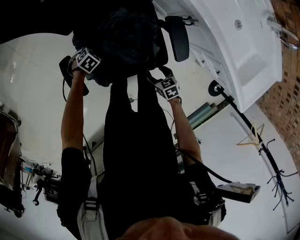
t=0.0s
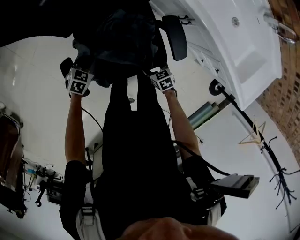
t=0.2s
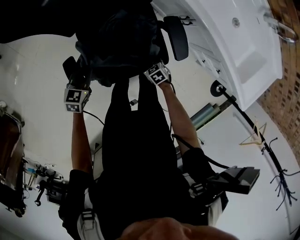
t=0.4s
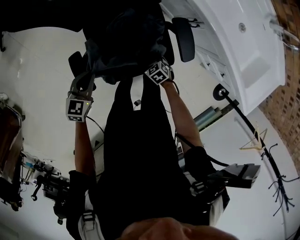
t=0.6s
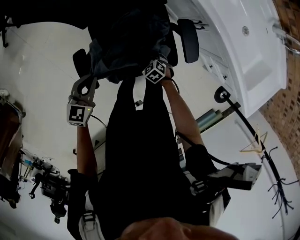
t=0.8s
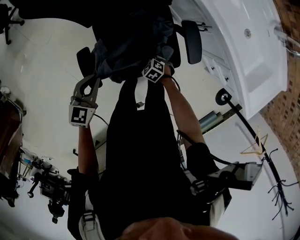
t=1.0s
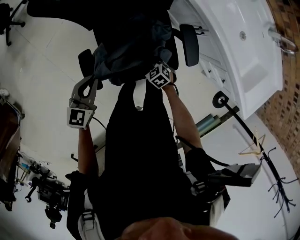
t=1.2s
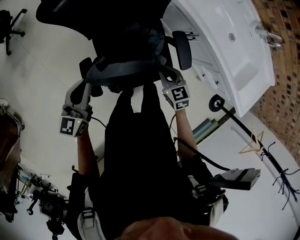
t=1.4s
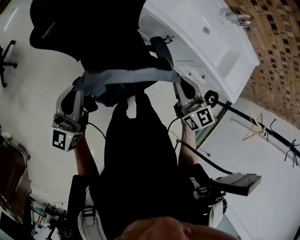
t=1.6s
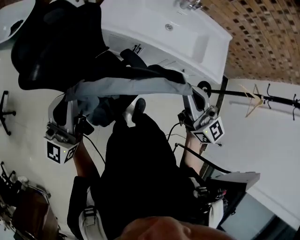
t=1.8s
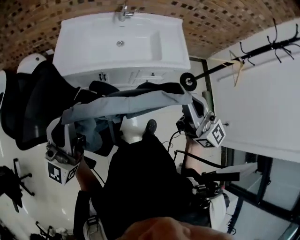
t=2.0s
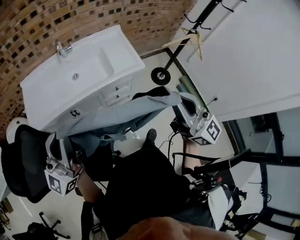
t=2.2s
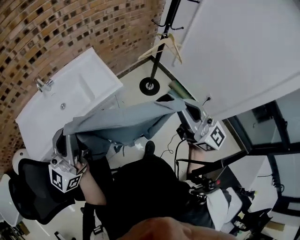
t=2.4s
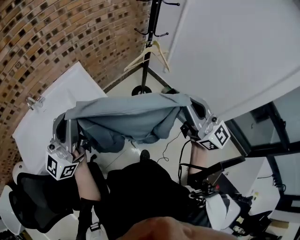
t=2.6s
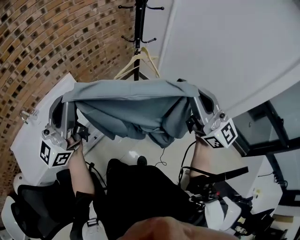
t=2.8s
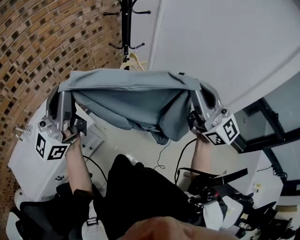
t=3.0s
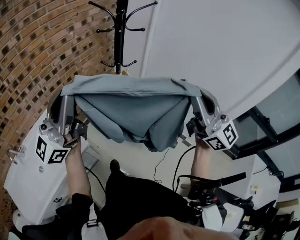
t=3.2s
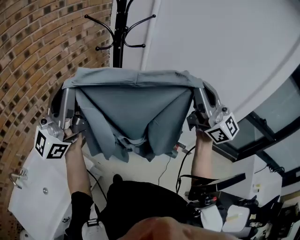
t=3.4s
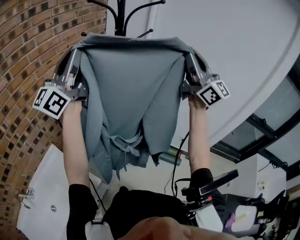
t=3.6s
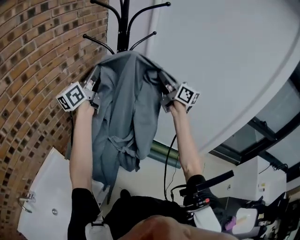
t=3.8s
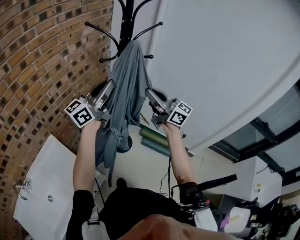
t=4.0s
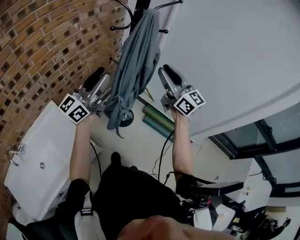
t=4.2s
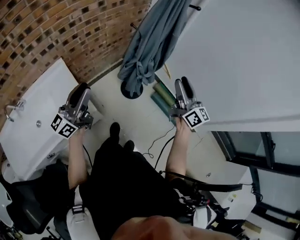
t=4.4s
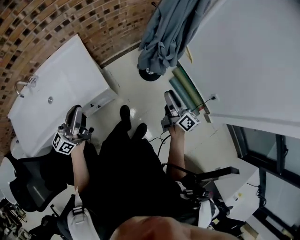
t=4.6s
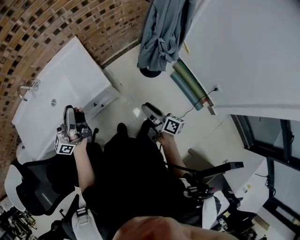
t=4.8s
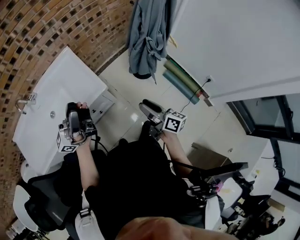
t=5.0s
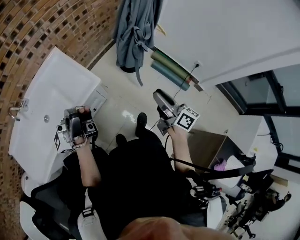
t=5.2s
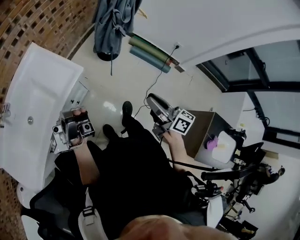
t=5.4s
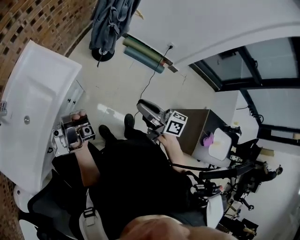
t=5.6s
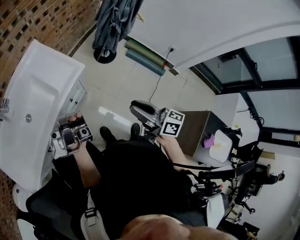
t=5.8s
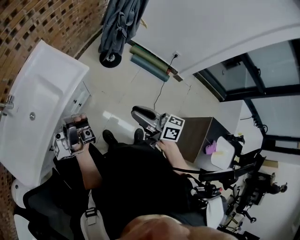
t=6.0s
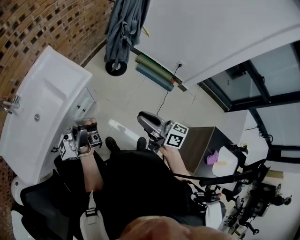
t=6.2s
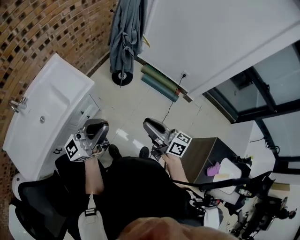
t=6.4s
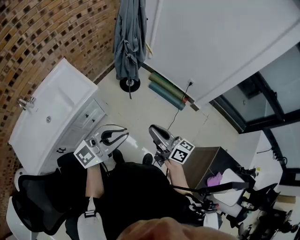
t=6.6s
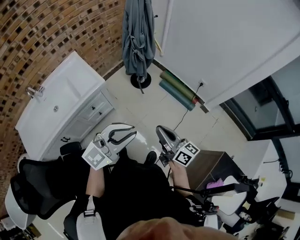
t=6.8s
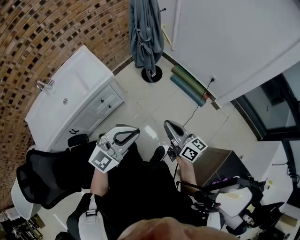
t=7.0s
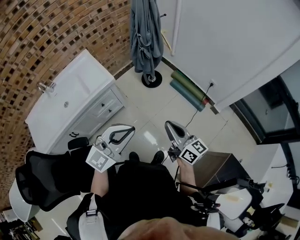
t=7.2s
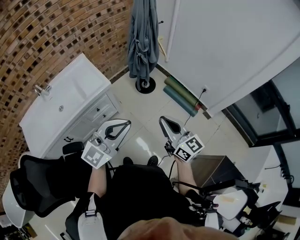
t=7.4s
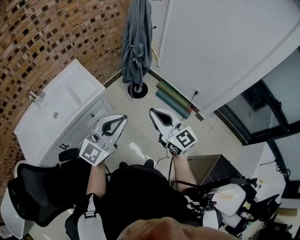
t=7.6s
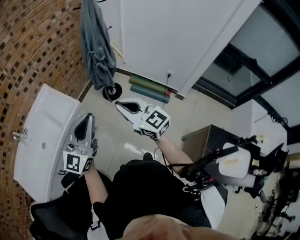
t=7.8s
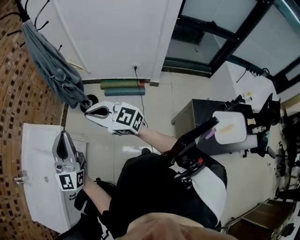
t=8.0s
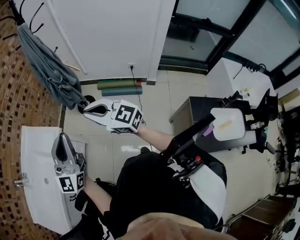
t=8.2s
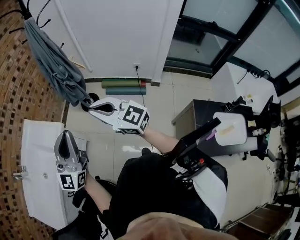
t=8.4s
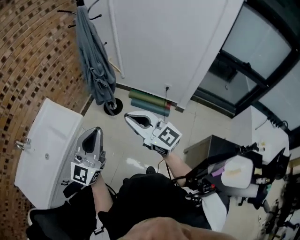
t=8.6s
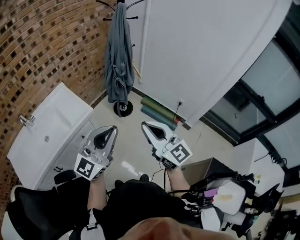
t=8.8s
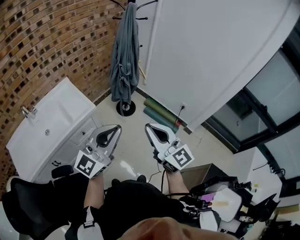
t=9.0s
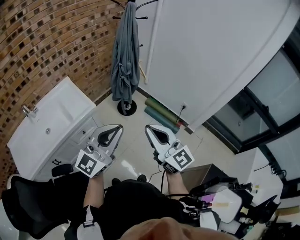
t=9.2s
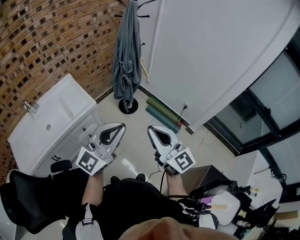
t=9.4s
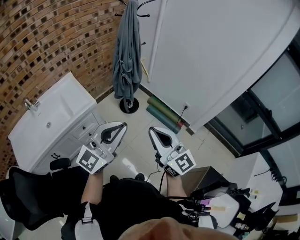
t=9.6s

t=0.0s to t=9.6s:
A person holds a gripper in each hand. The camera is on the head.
t=0.0s to t=1.6s: Both grippers move upward, roughly 50 cm. The left gripper tilts its fingers roughly 80 degrees upward. The right gripper tilts its fingers some 40 degrees upward, and closes up.
t=1.6s to t=3.2s: The two grippers travel together, roughly 90 cm. The right gripper angles its fingers upward, by roughly 40 degrees; the left gripper angles its fingers upward, by some 40 degrees.
t=3.2s to t=4.8s: The left gripper moves up and down over approximately 40 cm, changing direction 2 times, turns by about 30 degrees, and opens, then closes once more. The right gripper shifts roughly 50 cm downward, rotates around the line of its fingers by some 80 degrees, clockwise from behind, and opens up.
t=4.8s to t=6.4s: The left gripper moves some 25 cm, and changes its angle by some 40 degrees. The right gripper shifts by approximately 30 cm, and swivels roughly 30 degrees.
t=6.4s to t=8.0s: The left gripper goes left and right, roughly 20 cm each way, reversing 2 times, and rotates roughly 40 degrees; the right gripper travels upward by roughly 10 cm, reaches some 10 cm to the right, then returns, and rolls counterclockwise, seen from behind, by about 40 degrees.
t=8.0s to t=9.6s: The right gripper moves to the right and backward, about 10 cm. Meanwhile the left gripper moves to the right, approximately 10 cm.

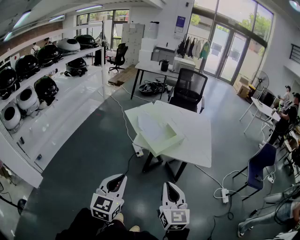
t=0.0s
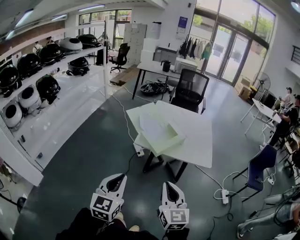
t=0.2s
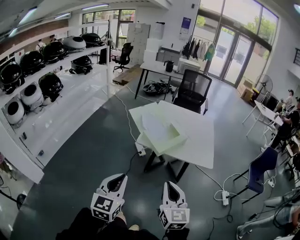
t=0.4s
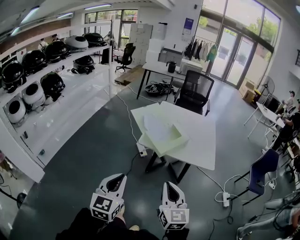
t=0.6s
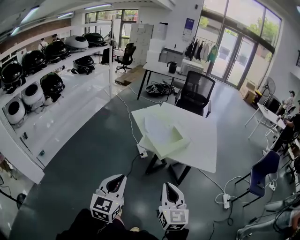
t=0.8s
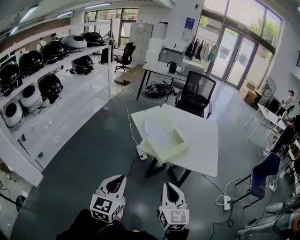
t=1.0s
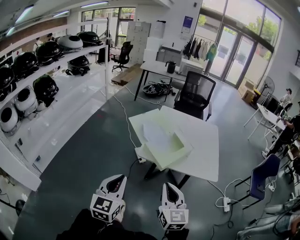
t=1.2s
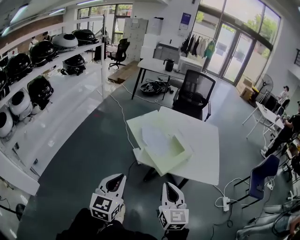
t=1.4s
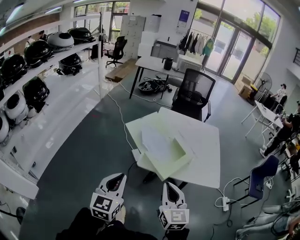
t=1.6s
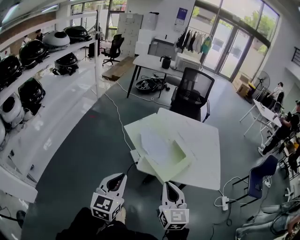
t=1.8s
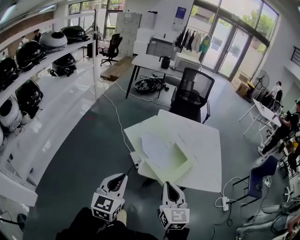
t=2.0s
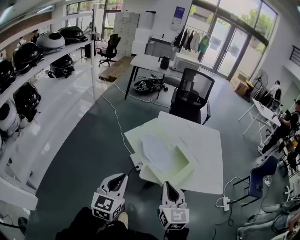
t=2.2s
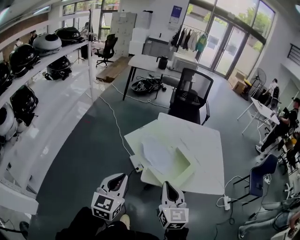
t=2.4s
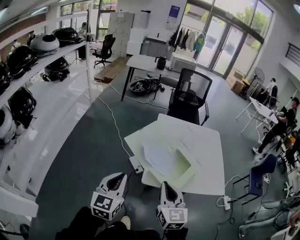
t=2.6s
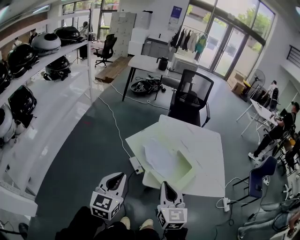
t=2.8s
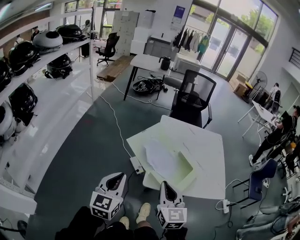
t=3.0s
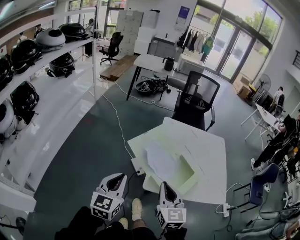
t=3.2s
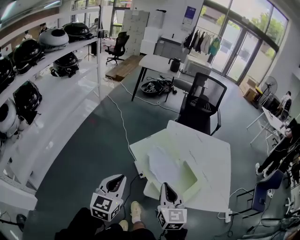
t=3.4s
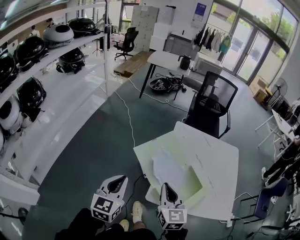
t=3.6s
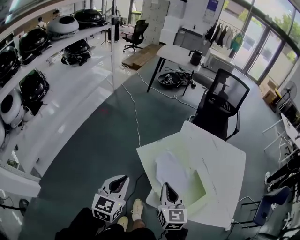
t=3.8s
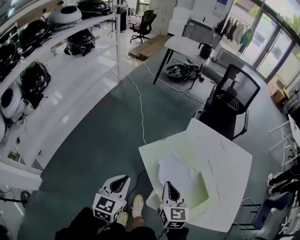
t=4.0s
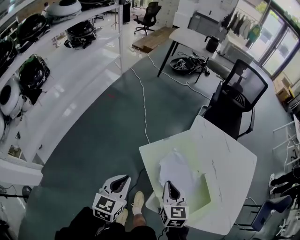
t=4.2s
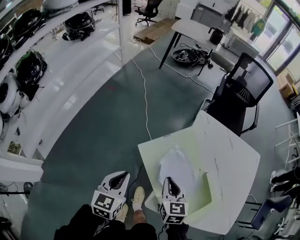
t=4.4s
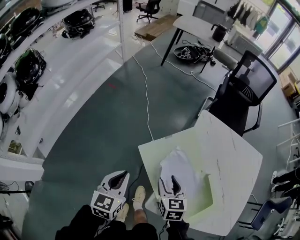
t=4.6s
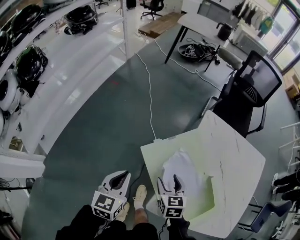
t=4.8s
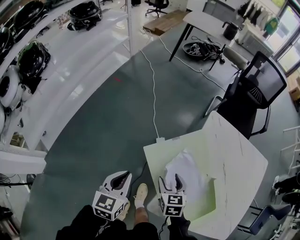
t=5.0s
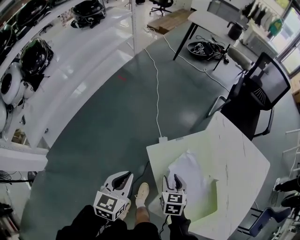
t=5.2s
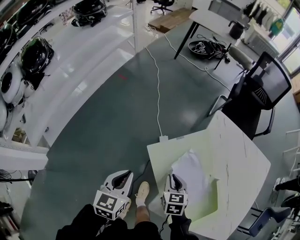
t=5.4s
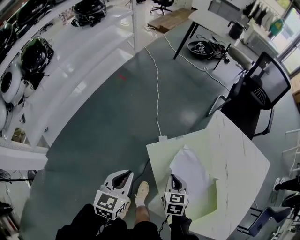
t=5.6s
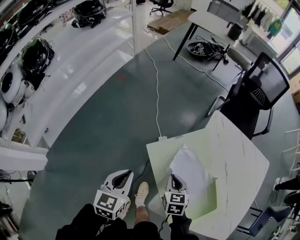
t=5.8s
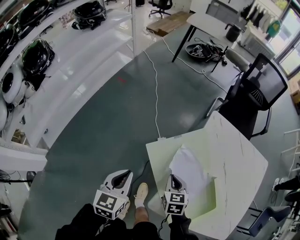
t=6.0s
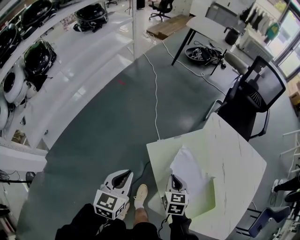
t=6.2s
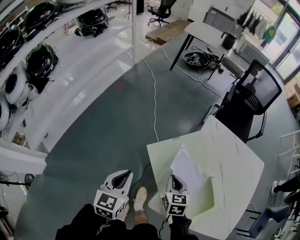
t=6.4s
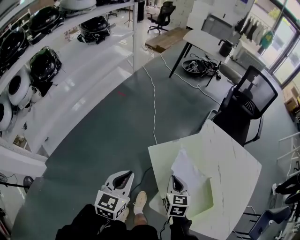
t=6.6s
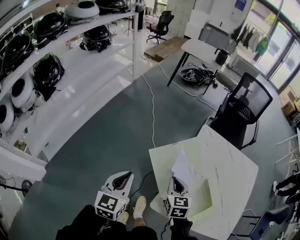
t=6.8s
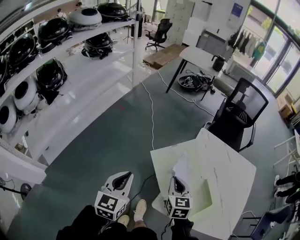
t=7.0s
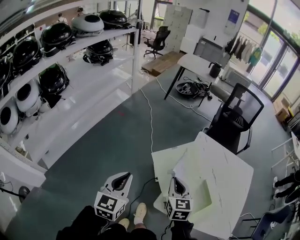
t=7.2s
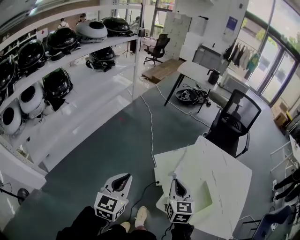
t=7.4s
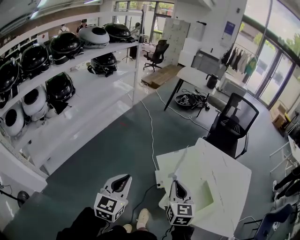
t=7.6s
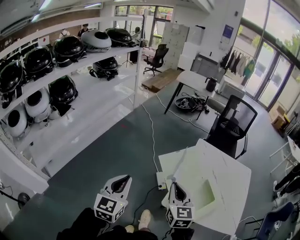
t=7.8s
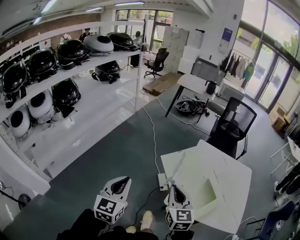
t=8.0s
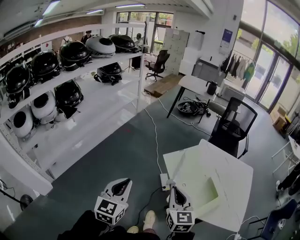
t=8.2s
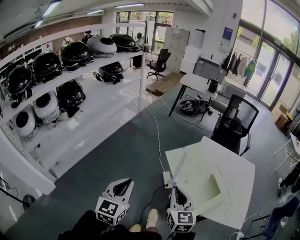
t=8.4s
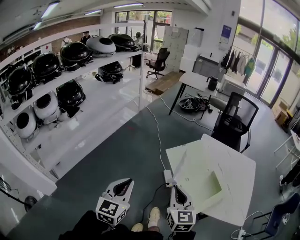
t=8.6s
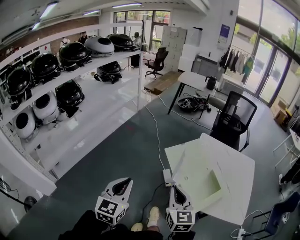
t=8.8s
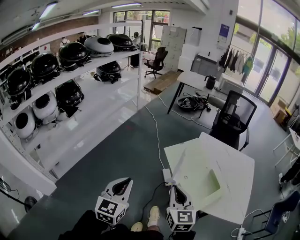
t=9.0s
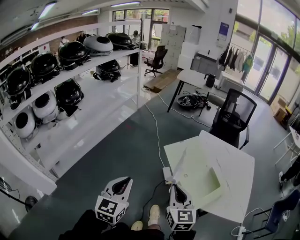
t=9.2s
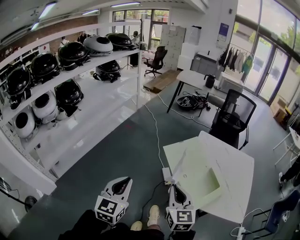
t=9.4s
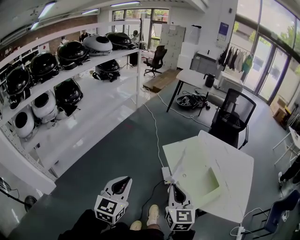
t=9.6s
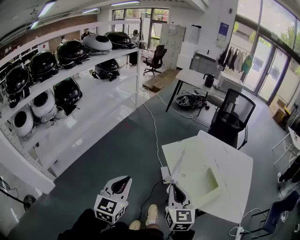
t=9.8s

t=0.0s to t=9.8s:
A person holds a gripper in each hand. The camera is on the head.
t=0.0s to t=1.4s: Both grippers travel together forward and to the left, approximately 25 cm.
t=1.4s to t=2.8s: Both grippers travel together forward and to the left, about 30 cm.
t=2.8s to t=4.2s: The grippers both shift forward and downward by approximately 35 cm. The left gripper changes its angle by some 20 degrees. The right gripper changes its angle by some 20 degrees.
t=4.2s to t=5.6s: The left gripper goes approximately 10 cm downward and forward, while the right gripper is displaced downward and forward by roughly 15 cm, and opens, then closes once more.
t=5.6s to t=7.0s: Both grippers travel together upward and backward, some 20 cm.
t=7.0s to t=8.4s: The left gripper shifts about 25 cm backward. Meanwhile the right gripper is displaced backward and upward by roughly 30 cm.
t=8.4s to t=9.8s: The grippers stay close to where they were, moving slightly.

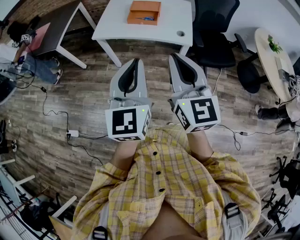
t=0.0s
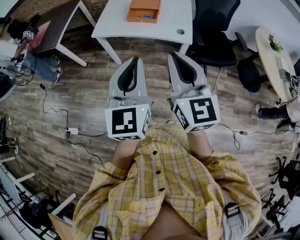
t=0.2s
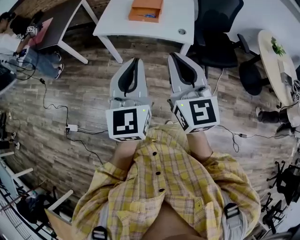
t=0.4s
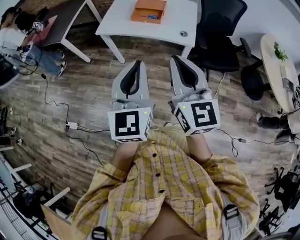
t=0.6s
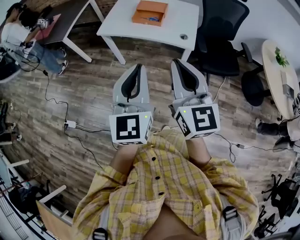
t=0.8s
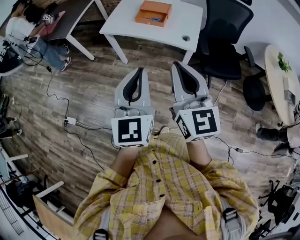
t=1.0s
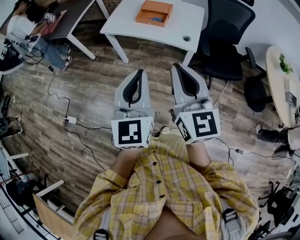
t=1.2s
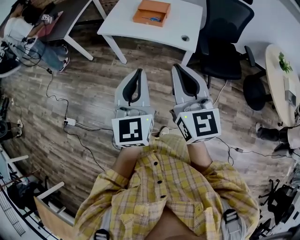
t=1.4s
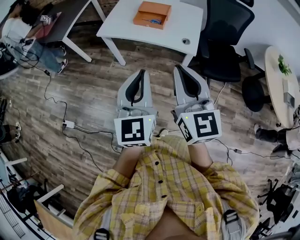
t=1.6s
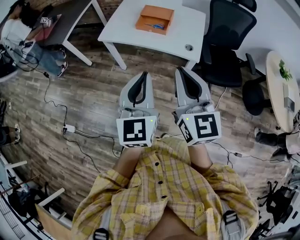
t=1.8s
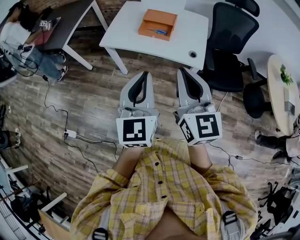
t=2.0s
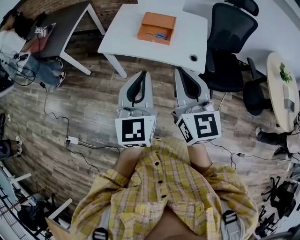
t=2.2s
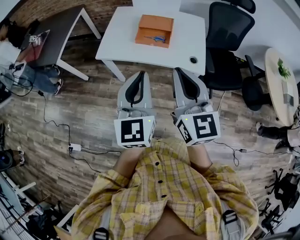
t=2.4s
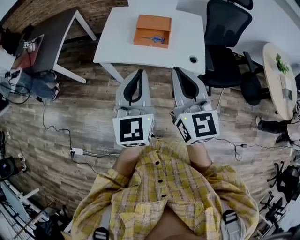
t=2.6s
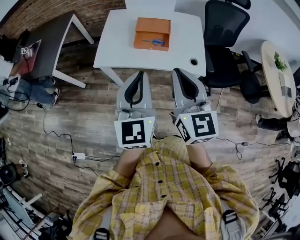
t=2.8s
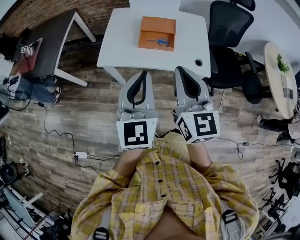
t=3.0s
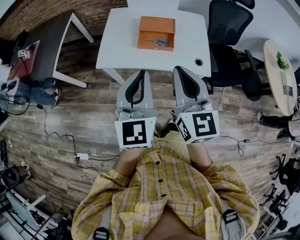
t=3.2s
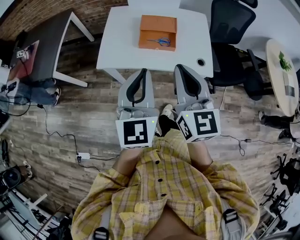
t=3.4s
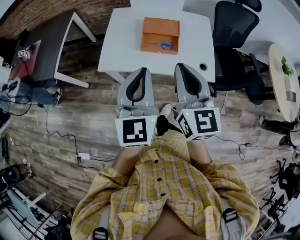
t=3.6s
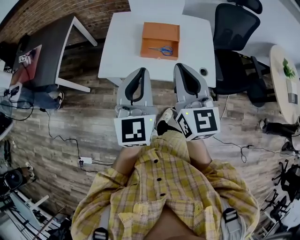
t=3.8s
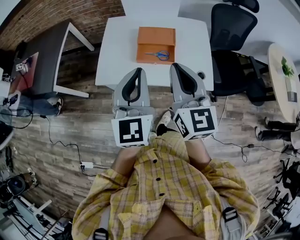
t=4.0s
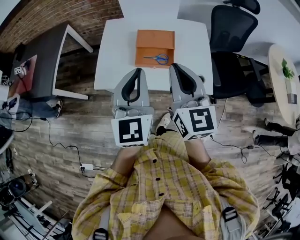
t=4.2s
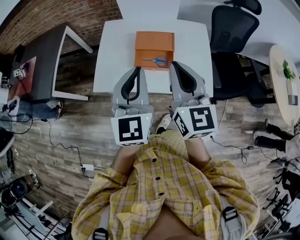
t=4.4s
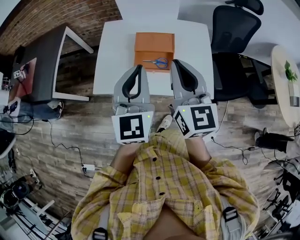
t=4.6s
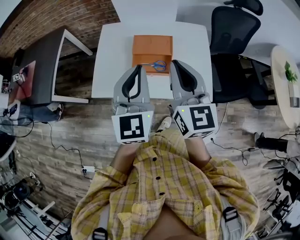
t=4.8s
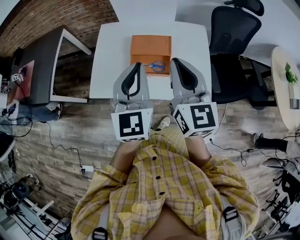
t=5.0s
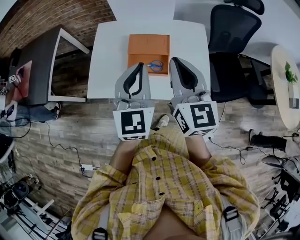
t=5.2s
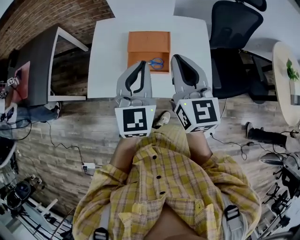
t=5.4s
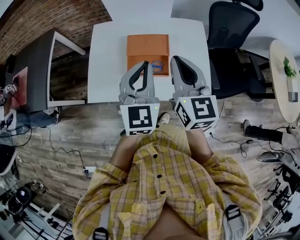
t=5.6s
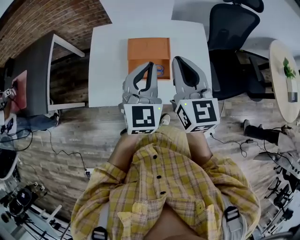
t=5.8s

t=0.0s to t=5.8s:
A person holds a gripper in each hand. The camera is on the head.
t=0.0s to t=1.4s: Both grippers move to the right, about 5 cm.
t=1.4s to t=2.8s: The two grippers go approximately 30 cm forward and to the left.
t=2.8s to t=4.4s: The two grippers go some 20 cm forward.
t=4.4s to t=5.8s: The left gripper shifts about 15 cm forward, to the right and downward. The right gripper is displaced forward by some 10 cm.
